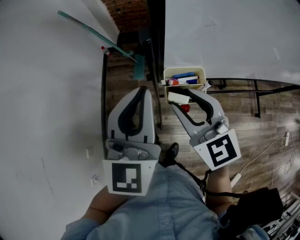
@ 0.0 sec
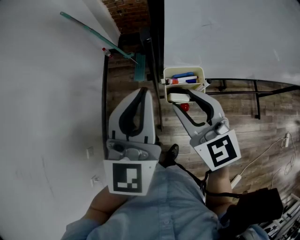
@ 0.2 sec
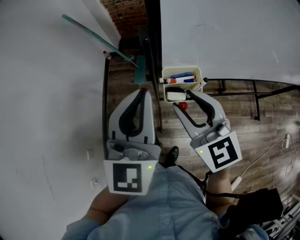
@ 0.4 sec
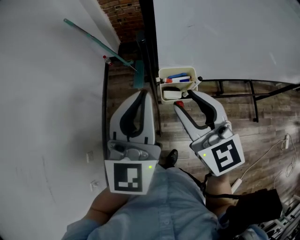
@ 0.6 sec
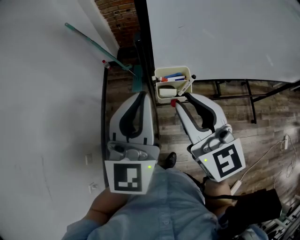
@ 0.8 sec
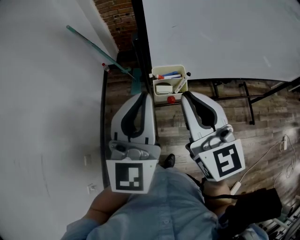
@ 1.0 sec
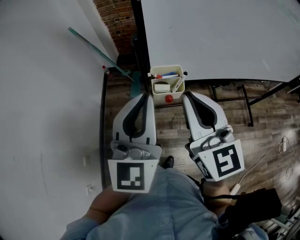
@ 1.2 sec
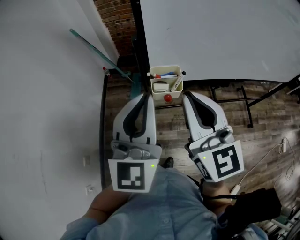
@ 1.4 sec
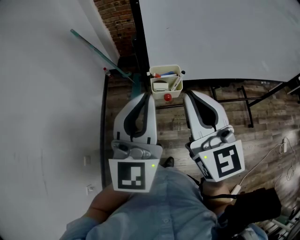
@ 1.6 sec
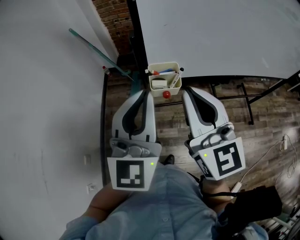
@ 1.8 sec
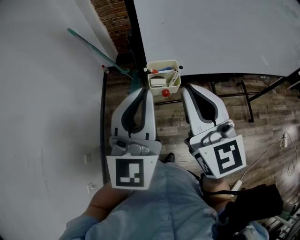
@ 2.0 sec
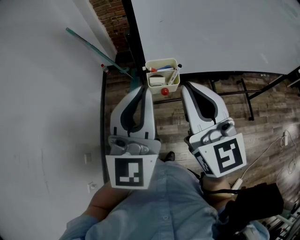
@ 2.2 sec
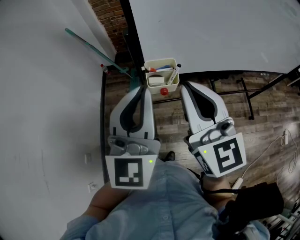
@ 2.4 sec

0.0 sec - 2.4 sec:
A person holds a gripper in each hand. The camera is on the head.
0.0 sec - 1.2 sec: The right gripper travels upward and backward by roughly 15 cm, swivels some 20 degrees, and closes; the left gripper travels backward and upward by roughly 10 cm.
1.2 sec - 2.4 sec: The grippers make only small movements.

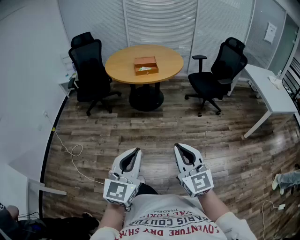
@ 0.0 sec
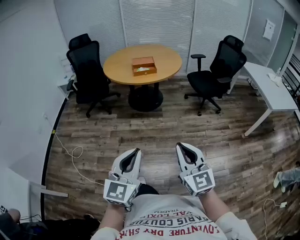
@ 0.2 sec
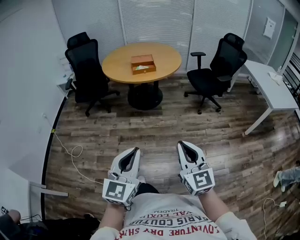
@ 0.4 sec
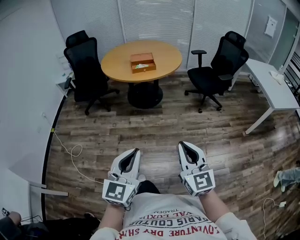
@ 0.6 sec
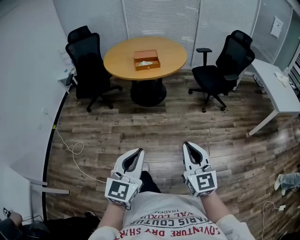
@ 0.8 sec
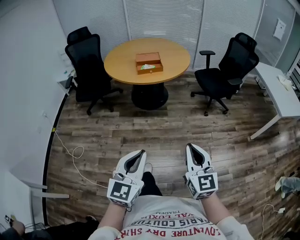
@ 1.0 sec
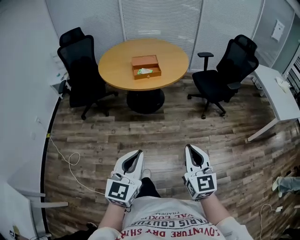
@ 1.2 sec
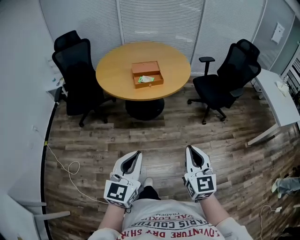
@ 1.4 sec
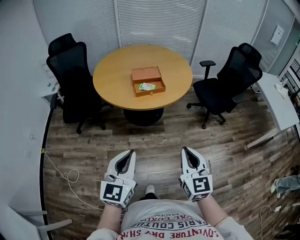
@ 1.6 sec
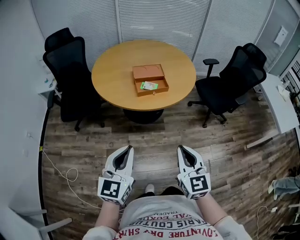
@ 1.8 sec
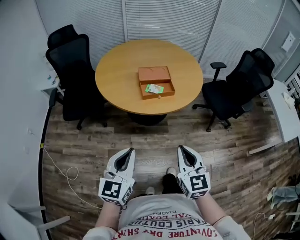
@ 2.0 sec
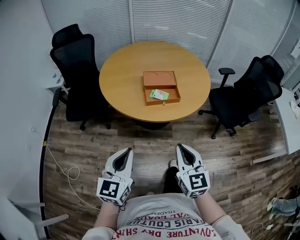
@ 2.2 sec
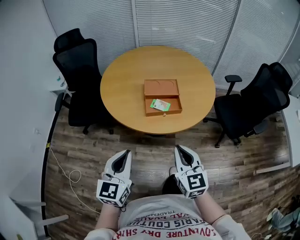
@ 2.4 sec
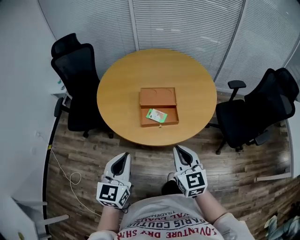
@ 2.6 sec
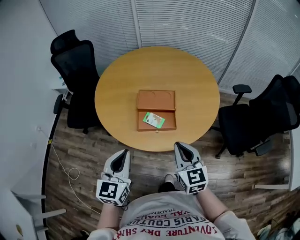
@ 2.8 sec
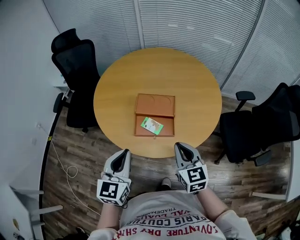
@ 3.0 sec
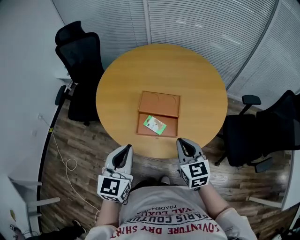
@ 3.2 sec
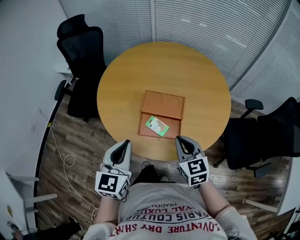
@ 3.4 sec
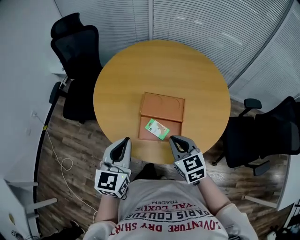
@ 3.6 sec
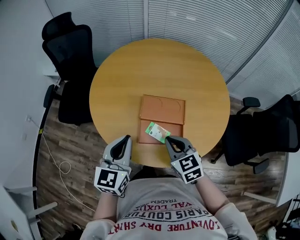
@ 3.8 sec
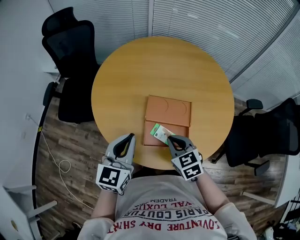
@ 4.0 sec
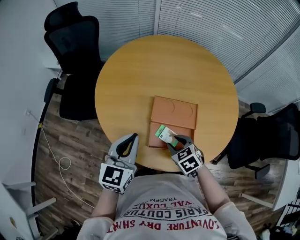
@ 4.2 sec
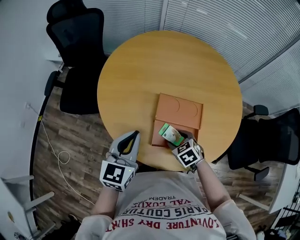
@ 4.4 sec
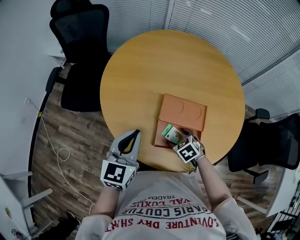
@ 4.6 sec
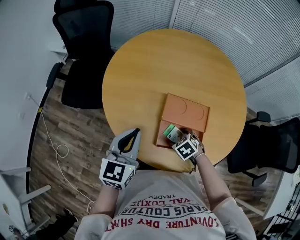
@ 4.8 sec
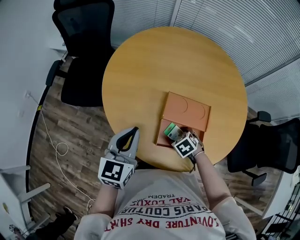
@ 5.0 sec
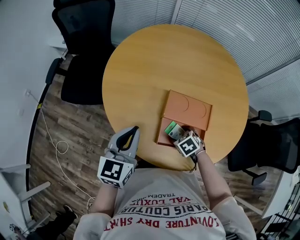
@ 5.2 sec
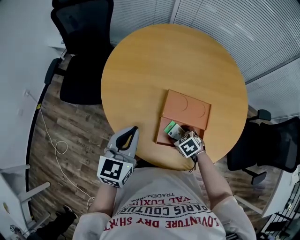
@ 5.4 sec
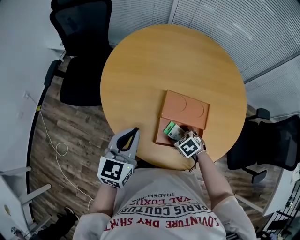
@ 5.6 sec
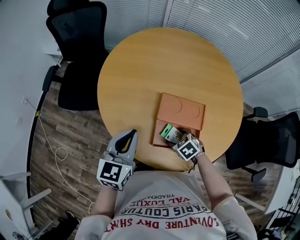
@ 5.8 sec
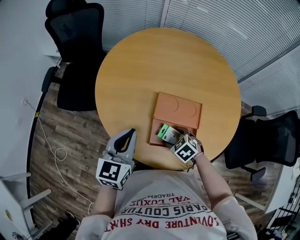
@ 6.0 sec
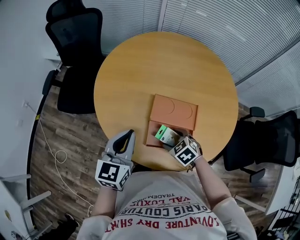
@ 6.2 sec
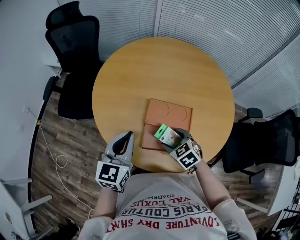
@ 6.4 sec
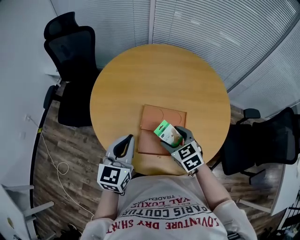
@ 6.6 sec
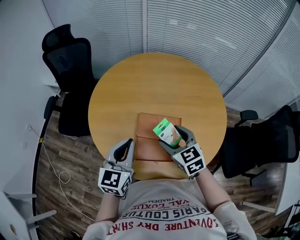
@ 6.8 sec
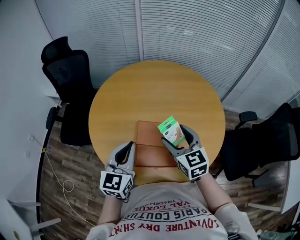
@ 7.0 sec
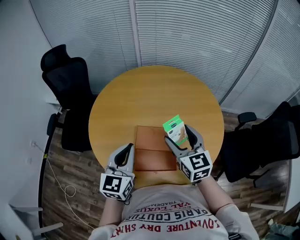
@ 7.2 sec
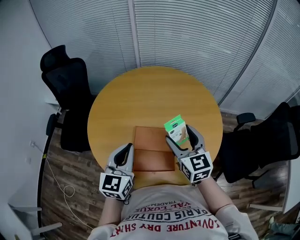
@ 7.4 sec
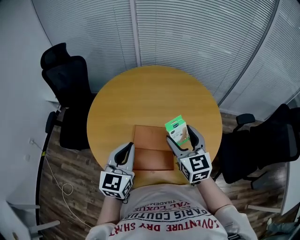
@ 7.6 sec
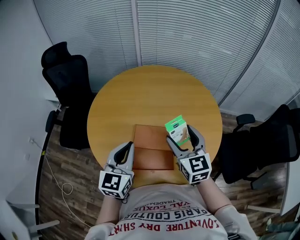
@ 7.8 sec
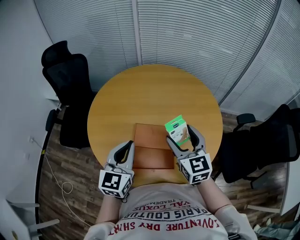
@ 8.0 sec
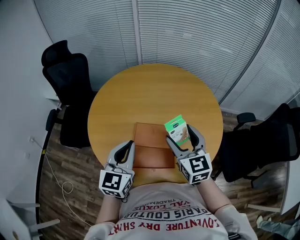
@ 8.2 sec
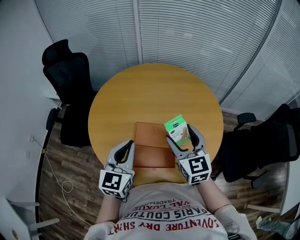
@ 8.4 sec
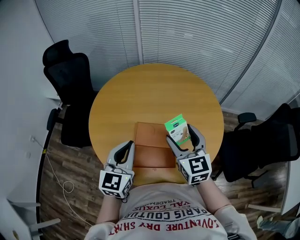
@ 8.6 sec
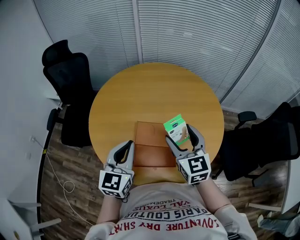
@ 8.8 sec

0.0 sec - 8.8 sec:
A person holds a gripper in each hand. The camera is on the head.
0.0 sec - 1.4 sec: The grippers both shift forward by about 30 cm.
1.4 sec - 3.0 sec: The pair of grippers is taken forward, about 50 cm. The left gripper changes its angle by roughly 20 degrees; the right gripper turns by about 30 degrees.
3.0 sec - 4.4 sec: The left gripper heads forward, covering about 20 cm. Meanwhile the right gripper travels downward, forward and to the left by about 30 cm, angles its fingers downward, by about 40 degrees, and opens.
5.8 sec - 7.4 sec: The left gripper shifts roughly 15 cm to the right and upward. Meanwhile the right gripper heads upward and to the right, covering some 35 cm, and tilts its fingers roughly 60 degrees upward.
7.4 sec - 8.8 sec: The two grippers keep their place.

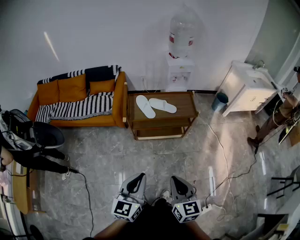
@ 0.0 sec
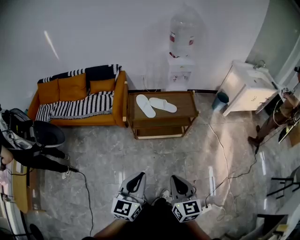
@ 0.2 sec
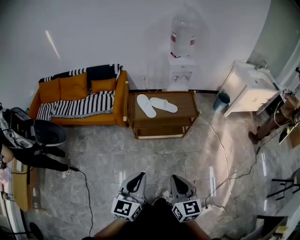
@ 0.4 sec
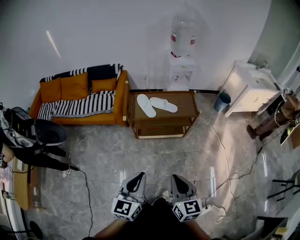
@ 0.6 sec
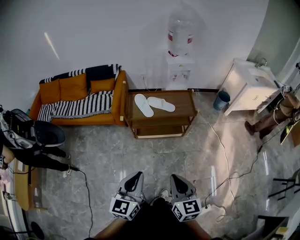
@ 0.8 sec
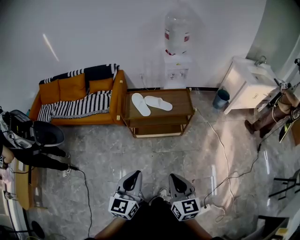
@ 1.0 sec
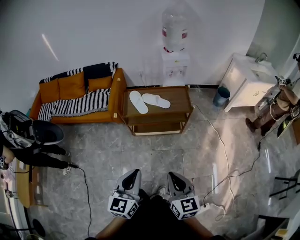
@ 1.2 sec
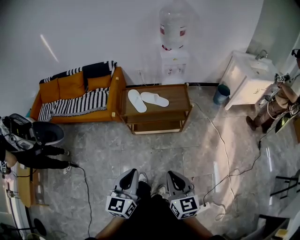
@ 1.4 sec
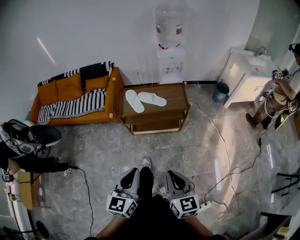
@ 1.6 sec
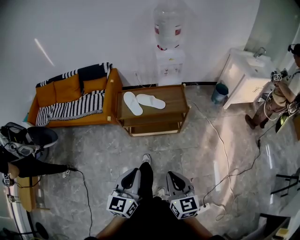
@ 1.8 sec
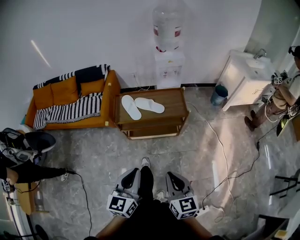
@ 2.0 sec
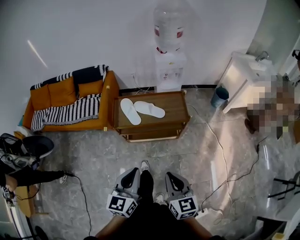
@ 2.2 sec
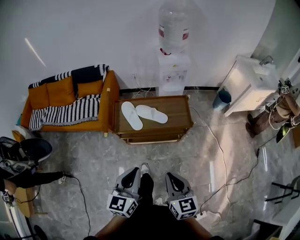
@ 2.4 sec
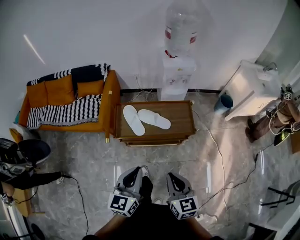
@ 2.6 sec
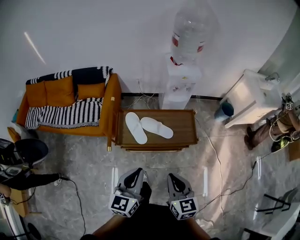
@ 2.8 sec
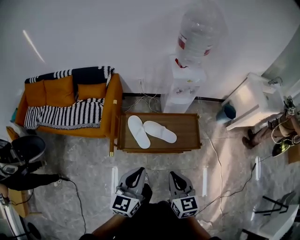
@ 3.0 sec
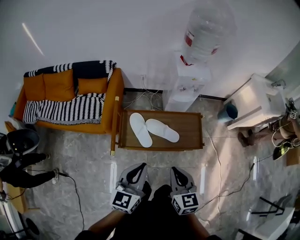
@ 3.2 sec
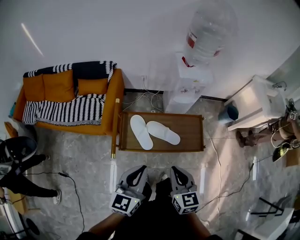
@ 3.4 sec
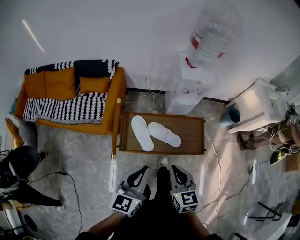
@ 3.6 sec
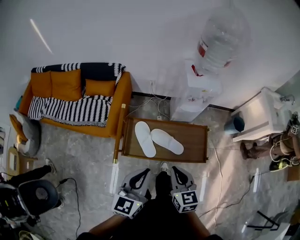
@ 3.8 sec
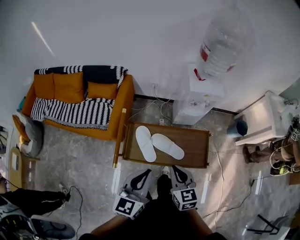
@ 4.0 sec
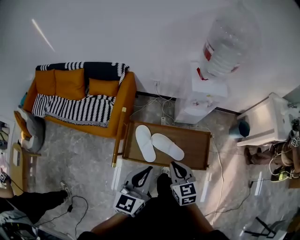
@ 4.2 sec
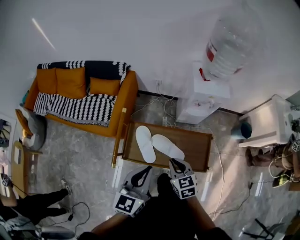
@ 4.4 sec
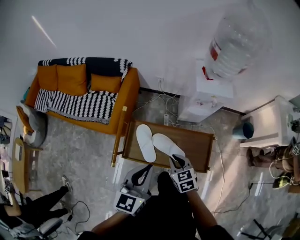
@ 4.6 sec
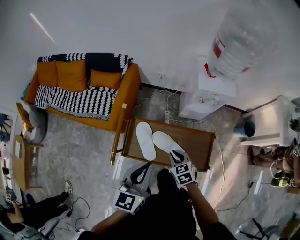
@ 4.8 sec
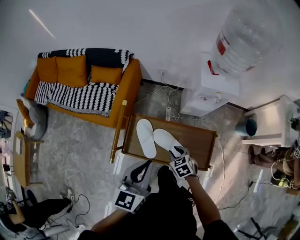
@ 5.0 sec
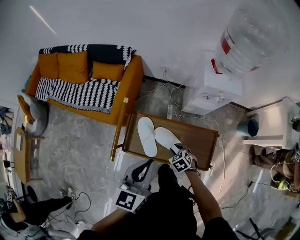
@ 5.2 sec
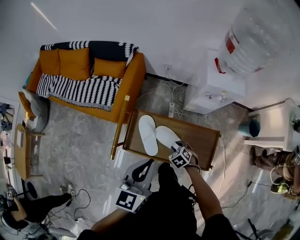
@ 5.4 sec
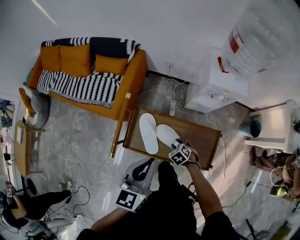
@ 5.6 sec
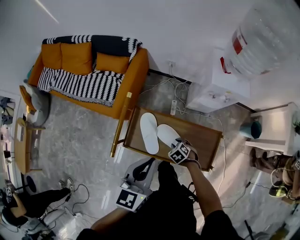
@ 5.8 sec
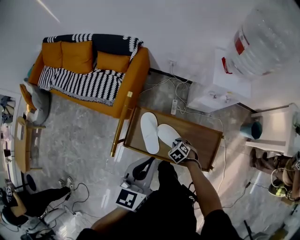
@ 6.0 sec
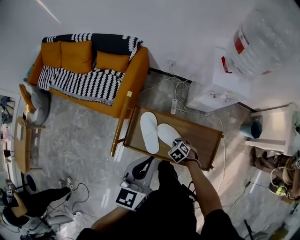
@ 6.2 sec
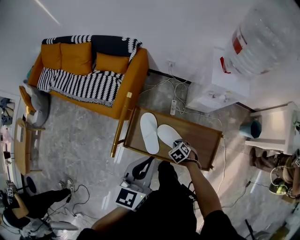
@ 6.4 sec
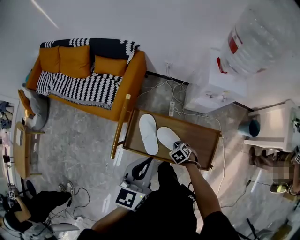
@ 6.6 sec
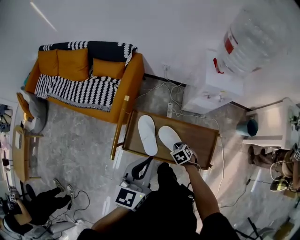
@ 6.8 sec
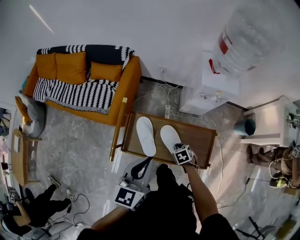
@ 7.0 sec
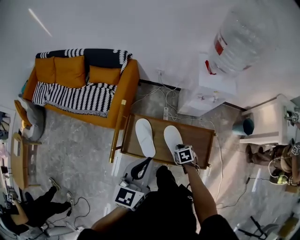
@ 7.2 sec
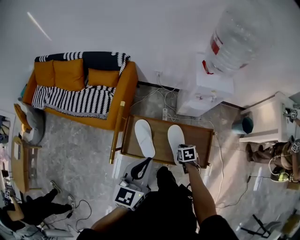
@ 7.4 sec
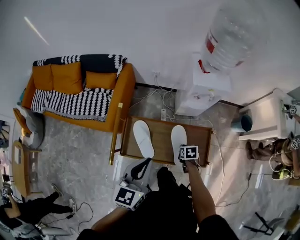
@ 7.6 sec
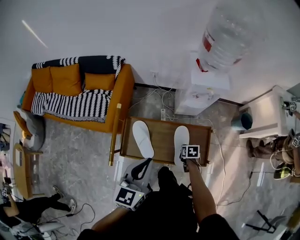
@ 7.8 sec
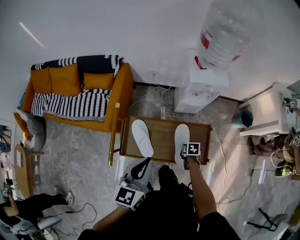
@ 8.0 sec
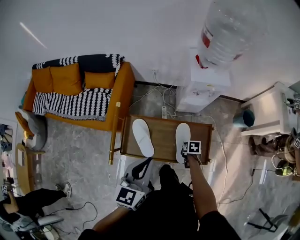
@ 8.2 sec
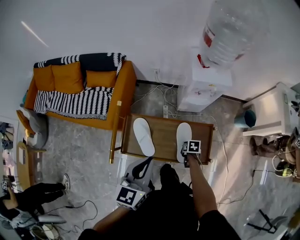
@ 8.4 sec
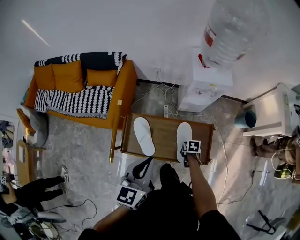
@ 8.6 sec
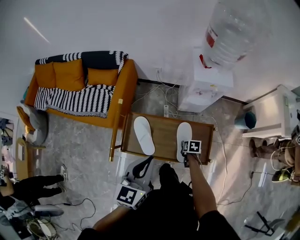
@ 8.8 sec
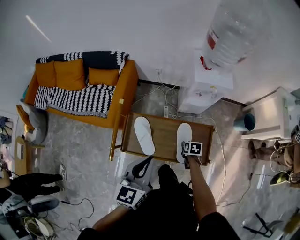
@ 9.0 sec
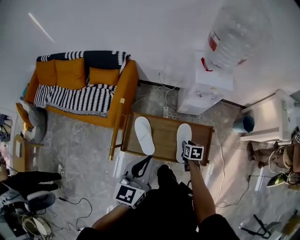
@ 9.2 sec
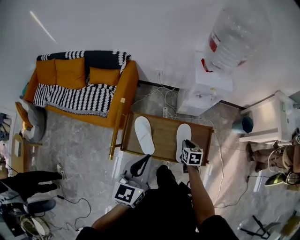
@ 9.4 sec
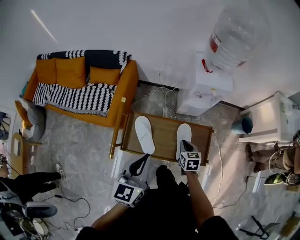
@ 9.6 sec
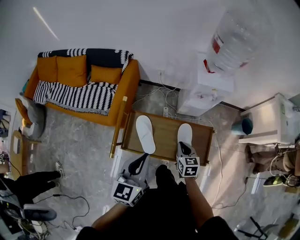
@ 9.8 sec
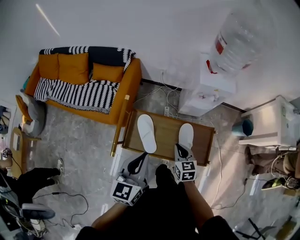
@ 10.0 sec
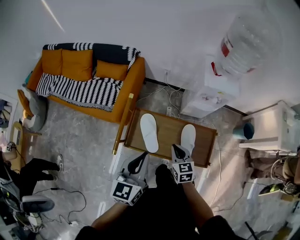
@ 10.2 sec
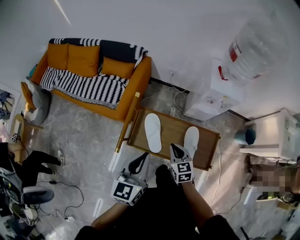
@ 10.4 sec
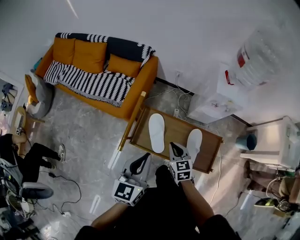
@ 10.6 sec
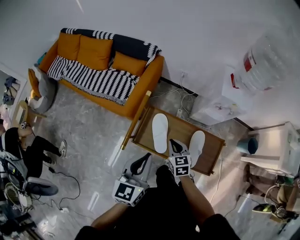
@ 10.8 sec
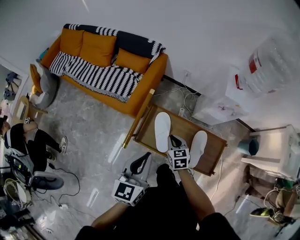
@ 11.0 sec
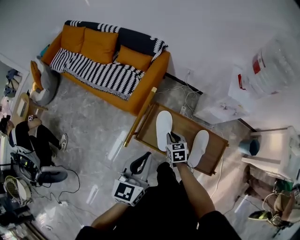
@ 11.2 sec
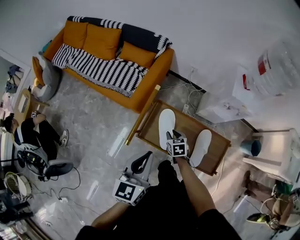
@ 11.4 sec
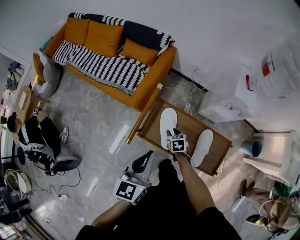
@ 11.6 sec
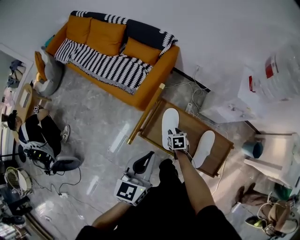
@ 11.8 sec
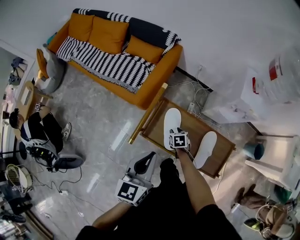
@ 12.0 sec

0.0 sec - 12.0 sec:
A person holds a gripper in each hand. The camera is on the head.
0.0 sec - 1.6 sec: Both grippers travel together to the right, roughly 10 cm.
1.6 sec - 3.0 sec: The grippers both shift forward by some 35 cm.
3.0 sec - 4.4 sec: The right gripper shifts about 25 cm forward and downward, and changes its angle by some 20 degrees, while the left gripper moves forward, some 15 cm.
4.4 sec - 6.0 sec: The left gripper moves about 5 cm, while the right gripper is displaced downward by about 25 cm, and tilts its fingers approximately 30 degrees downward.
6.0 sec - 7.6 sec: The right gripper is displaced to the right by approximately 10 cm, and twists approximately 50 degrees clockwise, seen from behind.
7.6 sec - 9.0 sec: The right gripper opens its fingers.
9.0 sec - 10.4 sec: The right gripper goes roughly 25 cm to the left and upward, points its fingers approximately 30 degrees further upward, and closes. Meanwhile the left gripper shifts approximately 10 cm to the left.
10.4 sec - 12.0 sec: The left gripper moves to the left, approximately 5 cm. The right gripper travels downward and forward by roughly 25 cm, swivels approximately 30 degrees, and opens.
